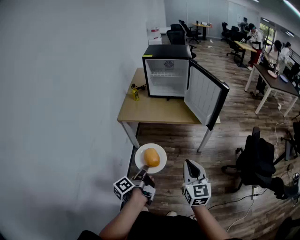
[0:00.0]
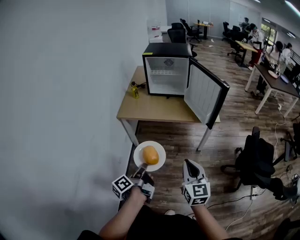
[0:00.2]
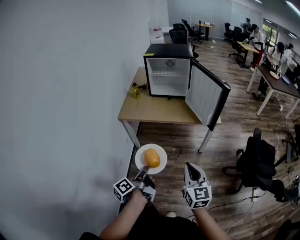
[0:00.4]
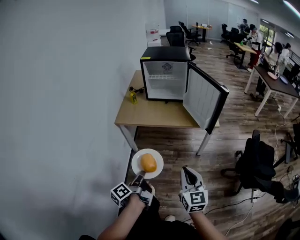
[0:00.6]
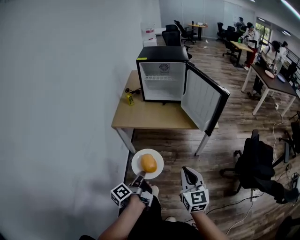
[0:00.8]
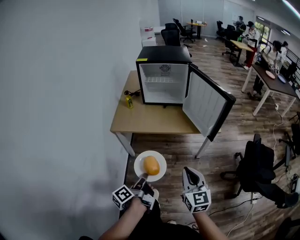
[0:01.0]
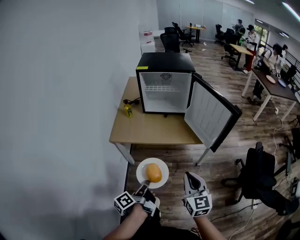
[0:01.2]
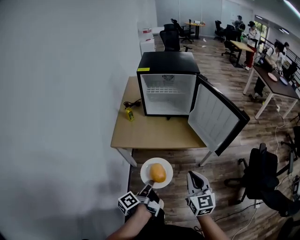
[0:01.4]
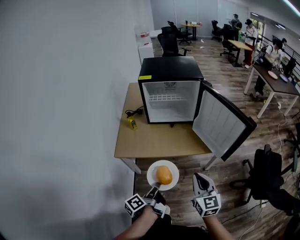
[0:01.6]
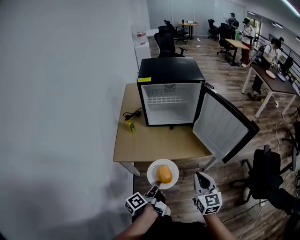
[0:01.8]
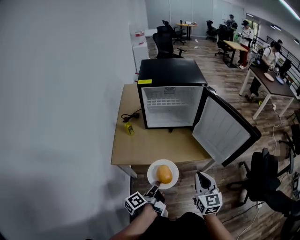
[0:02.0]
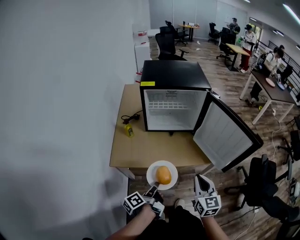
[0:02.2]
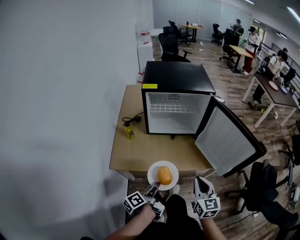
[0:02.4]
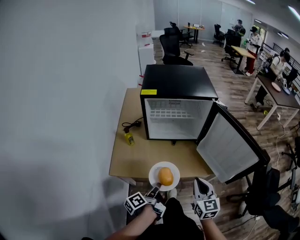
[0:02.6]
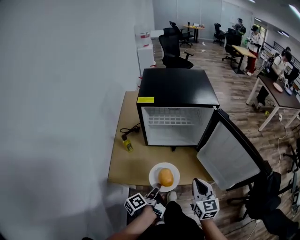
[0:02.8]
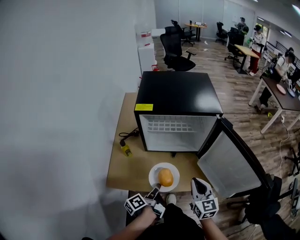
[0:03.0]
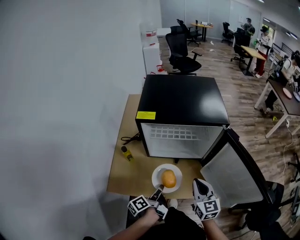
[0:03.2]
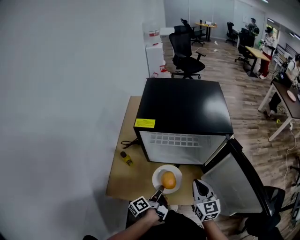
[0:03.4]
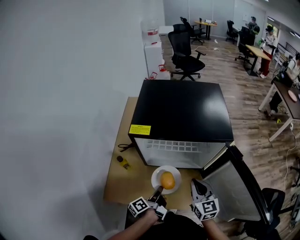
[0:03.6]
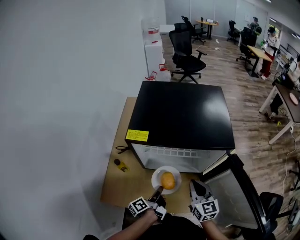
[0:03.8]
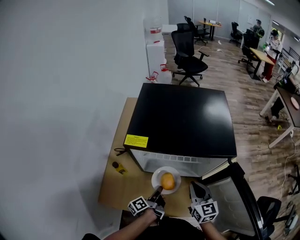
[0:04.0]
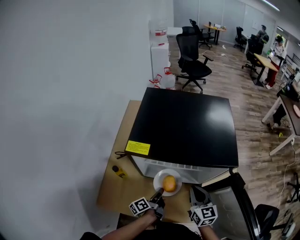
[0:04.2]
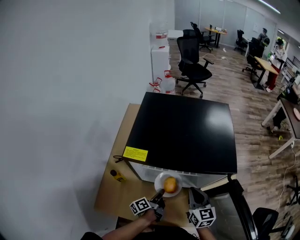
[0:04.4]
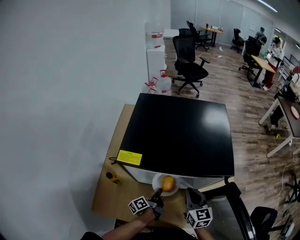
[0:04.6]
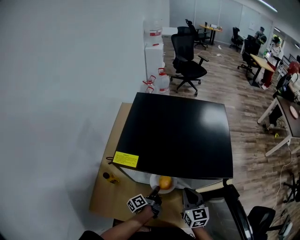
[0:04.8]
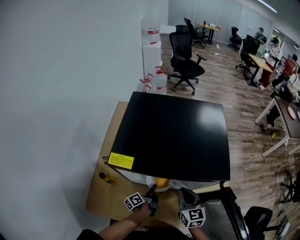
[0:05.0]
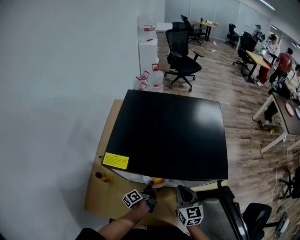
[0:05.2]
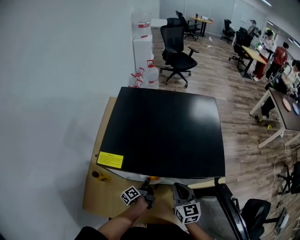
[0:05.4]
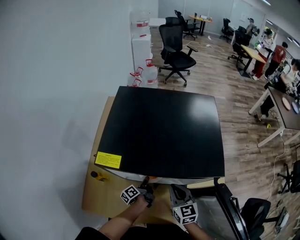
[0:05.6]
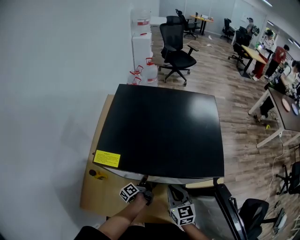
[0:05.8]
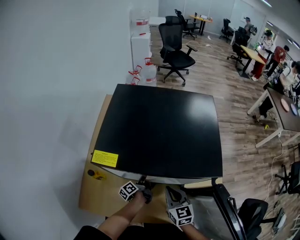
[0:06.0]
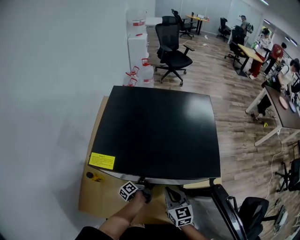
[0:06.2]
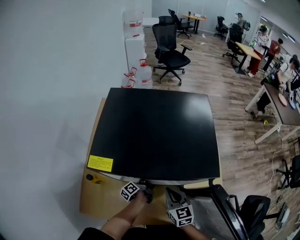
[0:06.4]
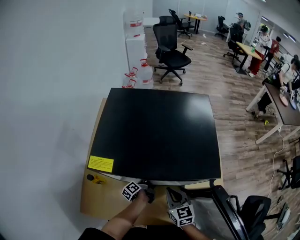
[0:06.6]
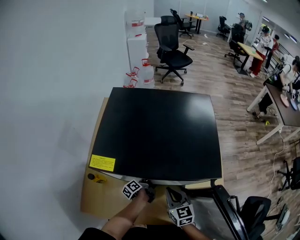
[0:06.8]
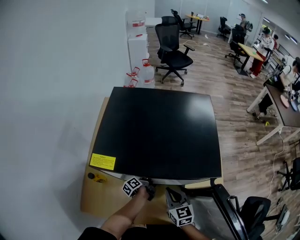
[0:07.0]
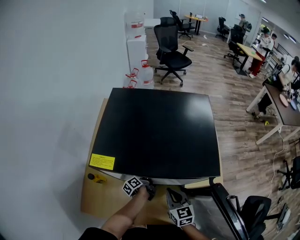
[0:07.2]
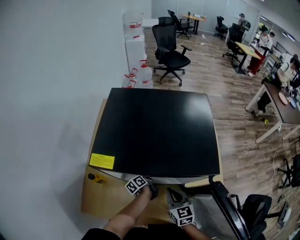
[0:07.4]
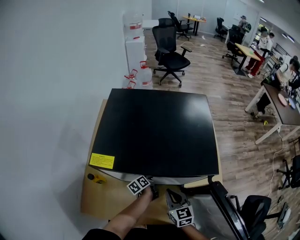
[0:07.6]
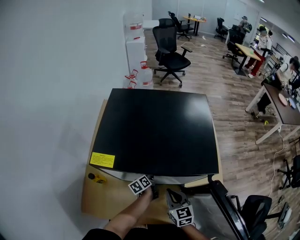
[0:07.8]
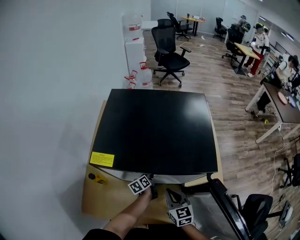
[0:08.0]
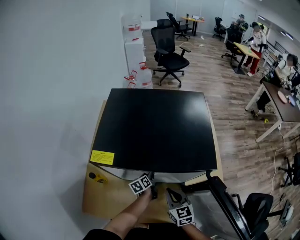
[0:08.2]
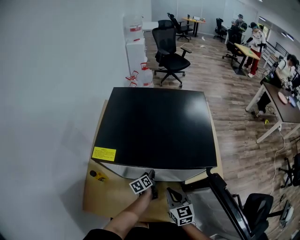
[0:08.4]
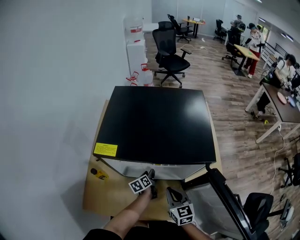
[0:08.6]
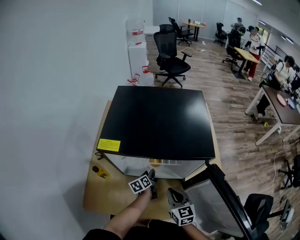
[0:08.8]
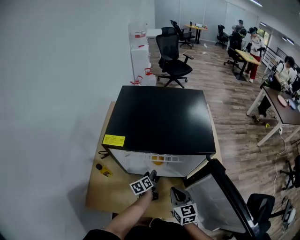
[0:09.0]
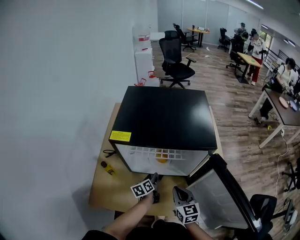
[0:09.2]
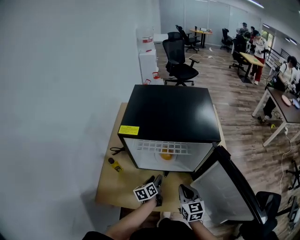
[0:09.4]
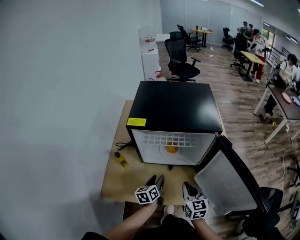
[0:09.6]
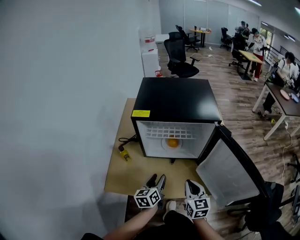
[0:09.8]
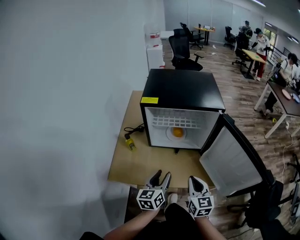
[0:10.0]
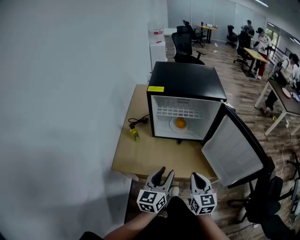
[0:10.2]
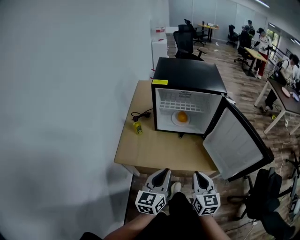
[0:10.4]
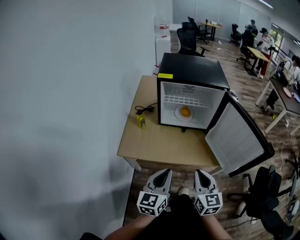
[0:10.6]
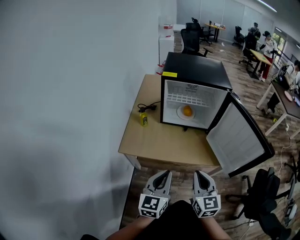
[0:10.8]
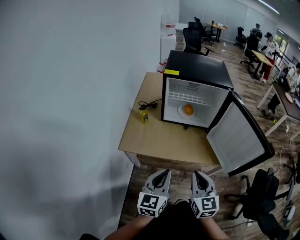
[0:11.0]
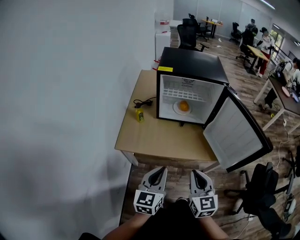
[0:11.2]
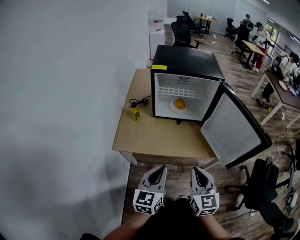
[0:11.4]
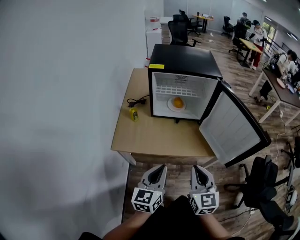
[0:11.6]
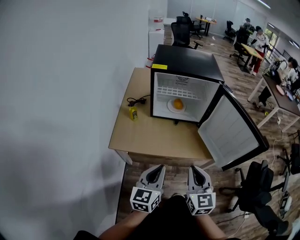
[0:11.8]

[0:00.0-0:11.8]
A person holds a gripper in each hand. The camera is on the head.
0.0 to 1.4 s: The right gripper changes place by some 20 cm.
1.4 to 3.0 s: The right gripper changes place by approximately 30 cm.
3.0 to 4.4 s: The right gripper changes place by some 20 cm.
4.4 to 6.0 s: The right gripper changes place by some 5 cm.
8.8 to 10.4 s: The right gripper ends up approximately 30 cm from where it was.
10.4 to 11.8 s: The right gripper ends up about 5 cm from where it was.

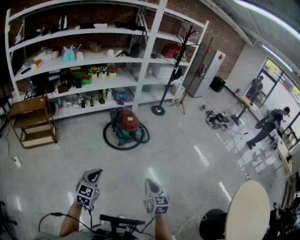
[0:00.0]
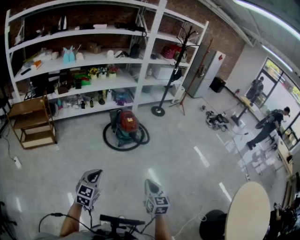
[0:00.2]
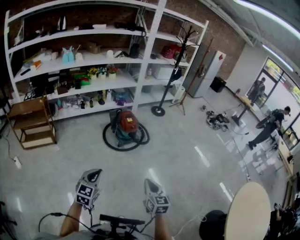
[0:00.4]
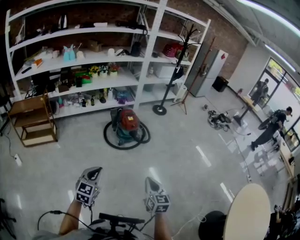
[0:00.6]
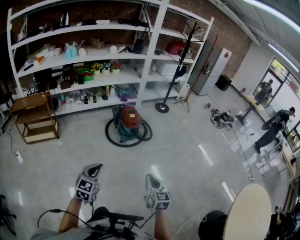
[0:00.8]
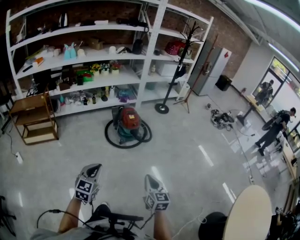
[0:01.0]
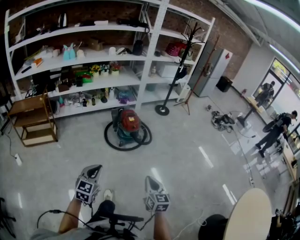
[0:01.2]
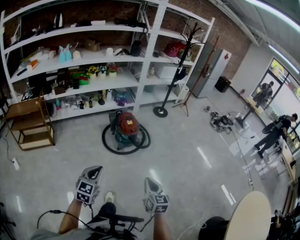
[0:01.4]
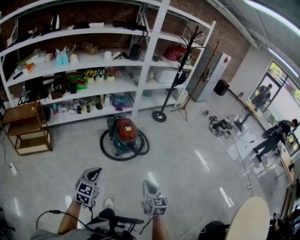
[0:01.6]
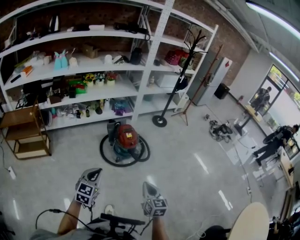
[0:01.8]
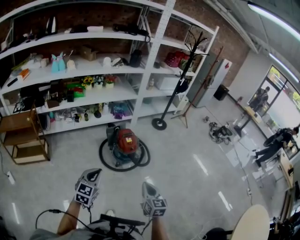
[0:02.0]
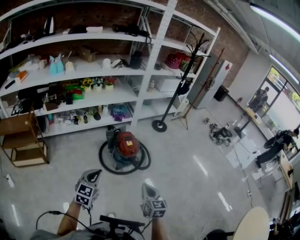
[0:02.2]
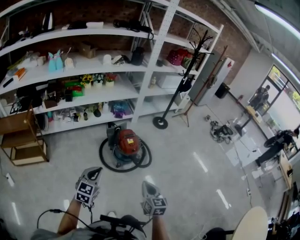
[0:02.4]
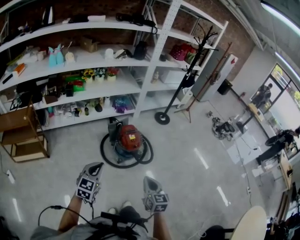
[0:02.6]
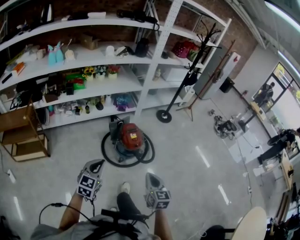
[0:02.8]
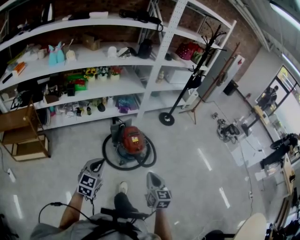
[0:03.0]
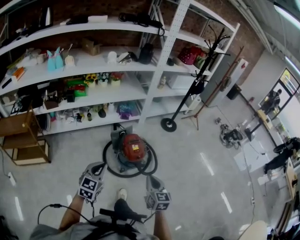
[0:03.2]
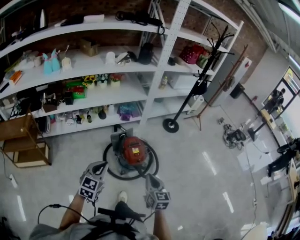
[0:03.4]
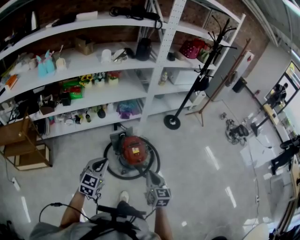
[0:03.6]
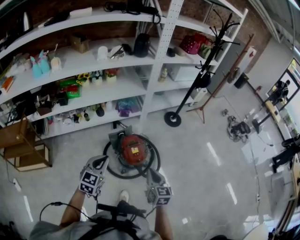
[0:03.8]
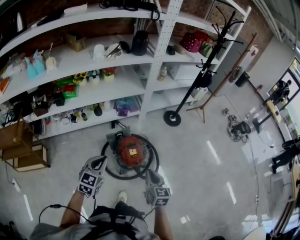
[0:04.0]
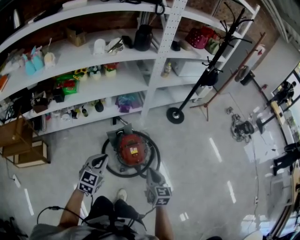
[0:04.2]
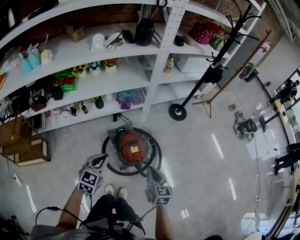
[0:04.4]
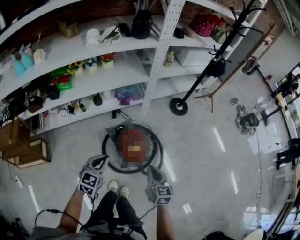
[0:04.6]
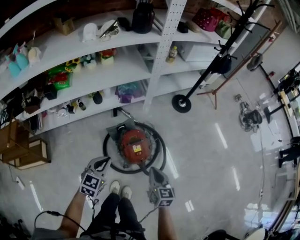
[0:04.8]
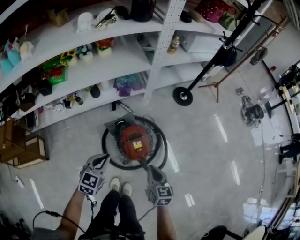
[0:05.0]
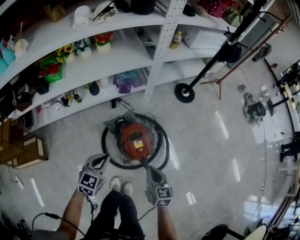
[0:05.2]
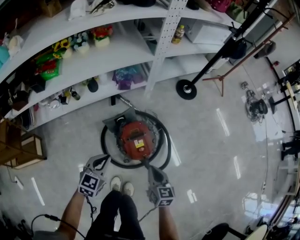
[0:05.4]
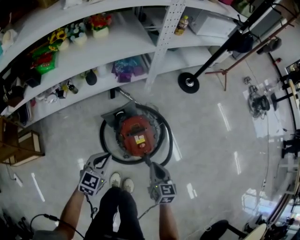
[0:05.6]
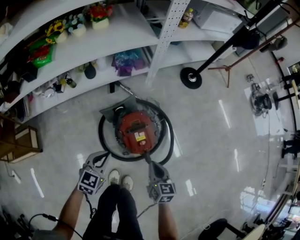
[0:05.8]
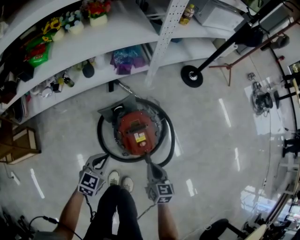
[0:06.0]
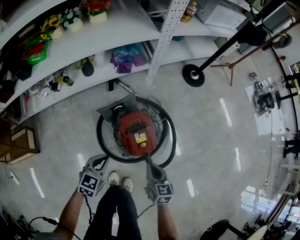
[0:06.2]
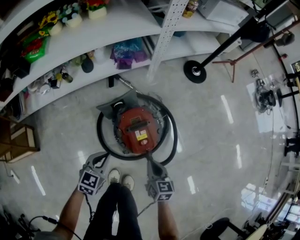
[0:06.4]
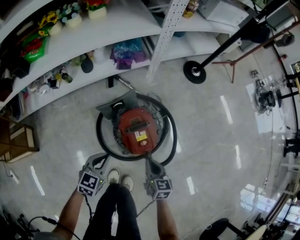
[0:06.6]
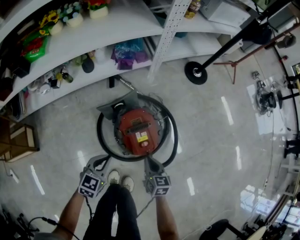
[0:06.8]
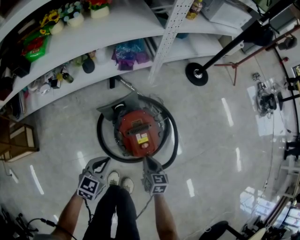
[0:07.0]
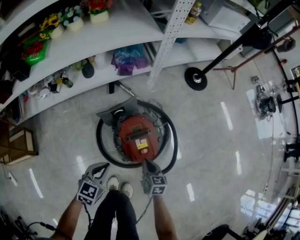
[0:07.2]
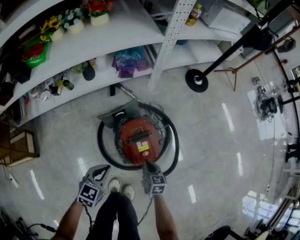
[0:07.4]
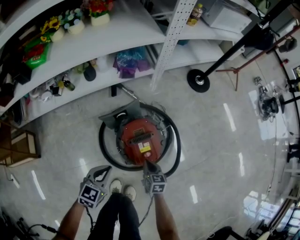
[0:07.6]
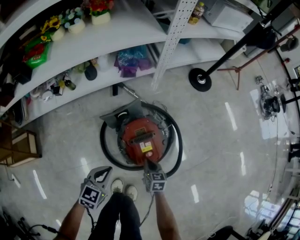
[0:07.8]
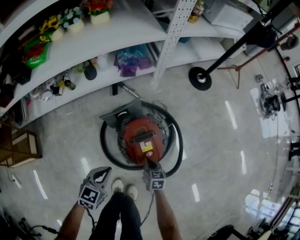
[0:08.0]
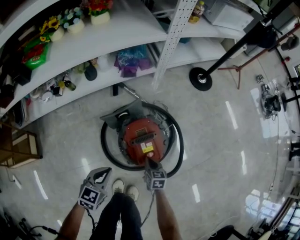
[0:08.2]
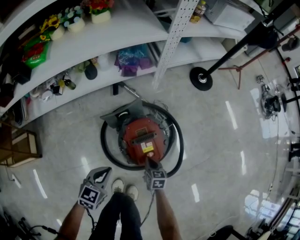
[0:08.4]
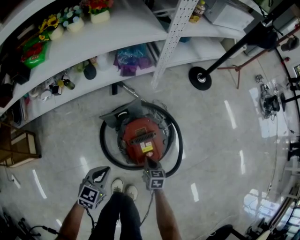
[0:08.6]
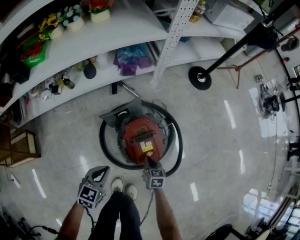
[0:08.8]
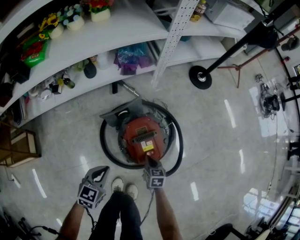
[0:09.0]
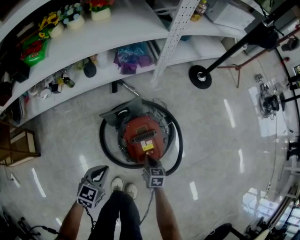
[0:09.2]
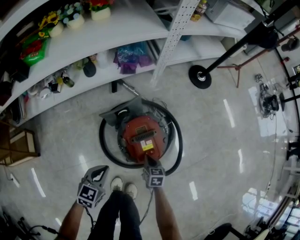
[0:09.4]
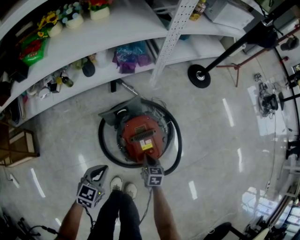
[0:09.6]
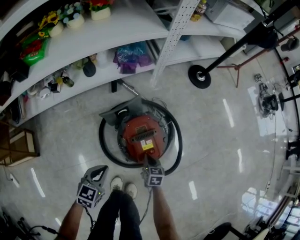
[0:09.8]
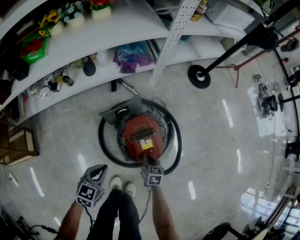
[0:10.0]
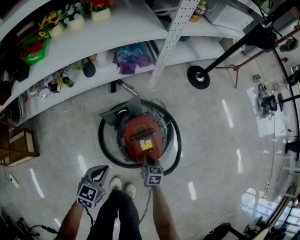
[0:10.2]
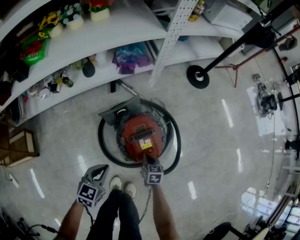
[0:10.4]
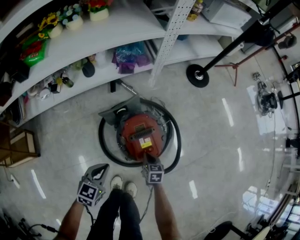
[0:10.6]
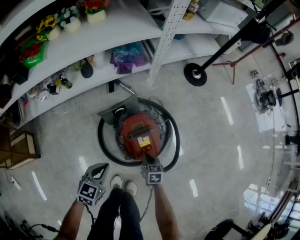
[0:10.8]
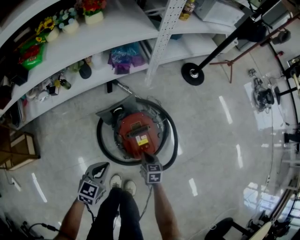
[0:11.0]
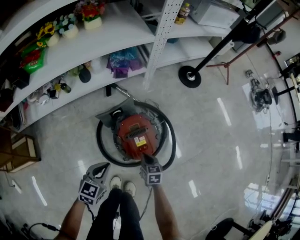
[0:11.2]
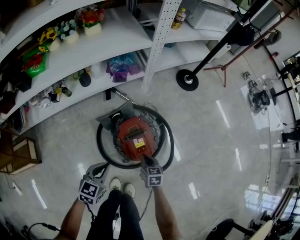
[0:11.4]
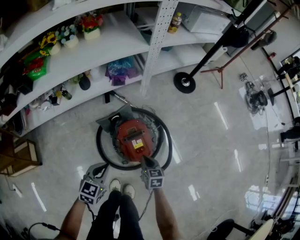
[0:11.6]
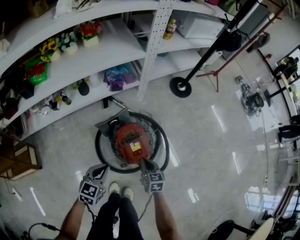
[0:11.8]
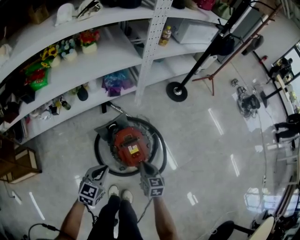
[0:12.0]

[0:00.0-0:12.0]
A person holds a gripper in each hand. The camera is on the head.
0.0 to 1.6 s: Both grippers travel together forward, about 20 cm.
1.6 to 3.0 s: The two grippers go some 25 cm forward.
3.0 to 4.4 s: Both grippers travel together forward, about 30 cm.
4.4 to 6.0 s: Both grippers travel together downward, about 30 cm.
6.0 to 7.6 s: The right gripper is displaced downward by approximately 15 cm.
7.6 to 9.0 s: The grippers make only small movements.
9.0 to 10.4 s: Neither gripper changes place.
10.4 to 12.0 s: The right gripper is displaced upward by roughly 20 cm. Meanwhile the left gripper goes about 15 cm upward.

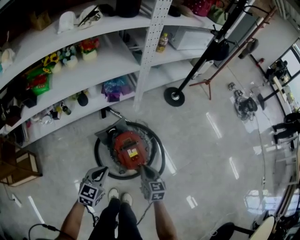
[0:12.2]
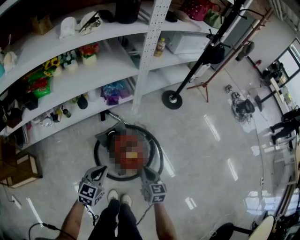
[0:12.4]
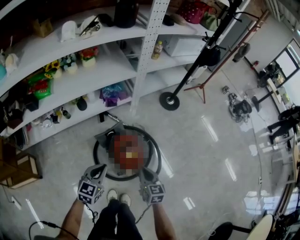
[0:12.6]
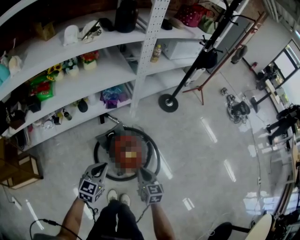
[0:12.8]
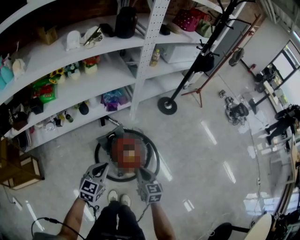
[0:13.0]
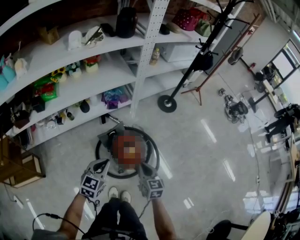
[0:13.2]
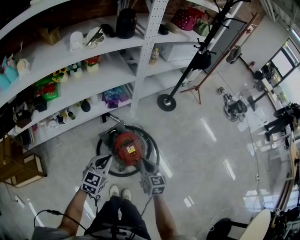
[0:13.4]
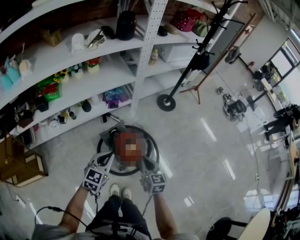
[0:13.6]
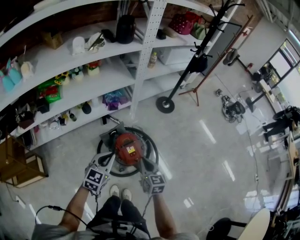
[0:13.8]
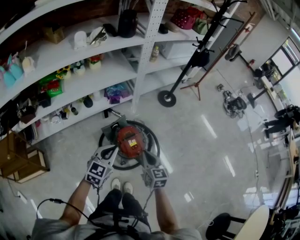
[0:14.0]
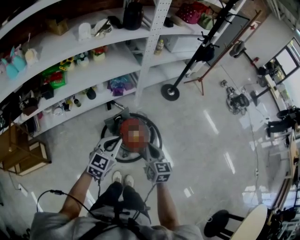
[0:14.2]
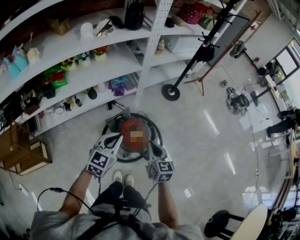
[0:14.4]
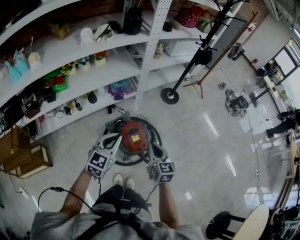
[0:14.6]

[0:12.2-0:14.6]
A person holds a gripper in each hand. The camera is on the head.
12.2 to 13.4 s: The grippers both shift upward by about 15 cm.
13.4 to 14.6 s: The two grippers go about 10 cm upward.
